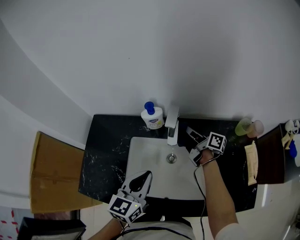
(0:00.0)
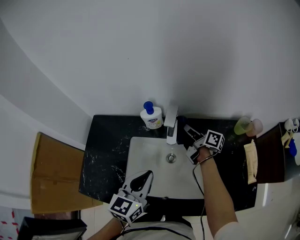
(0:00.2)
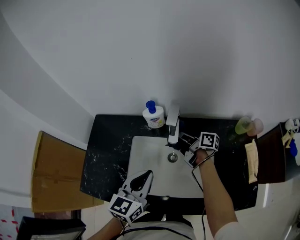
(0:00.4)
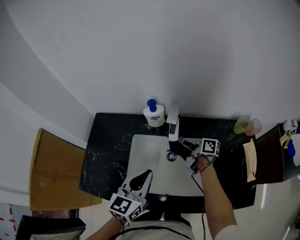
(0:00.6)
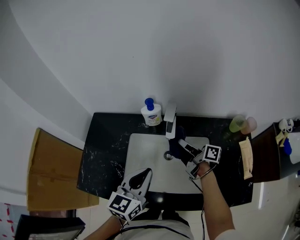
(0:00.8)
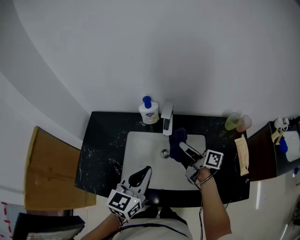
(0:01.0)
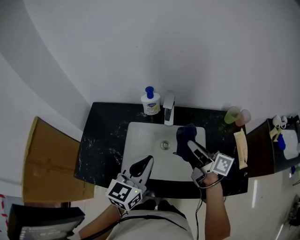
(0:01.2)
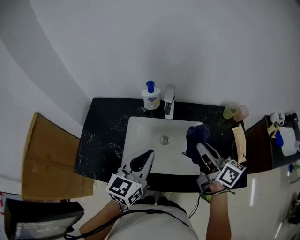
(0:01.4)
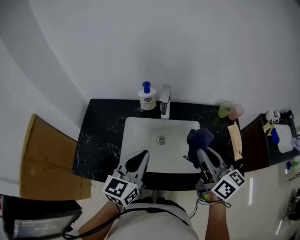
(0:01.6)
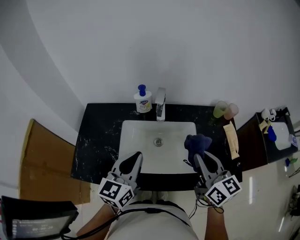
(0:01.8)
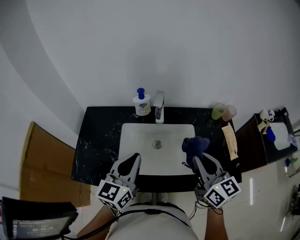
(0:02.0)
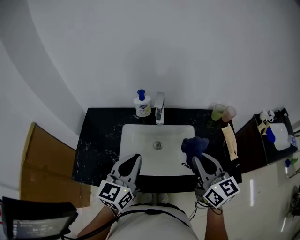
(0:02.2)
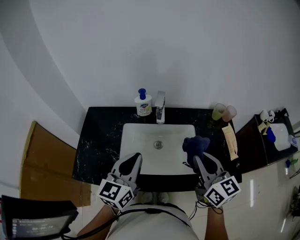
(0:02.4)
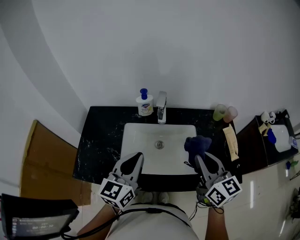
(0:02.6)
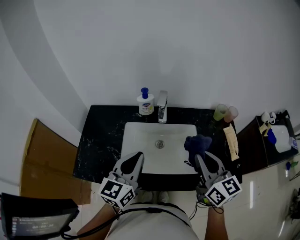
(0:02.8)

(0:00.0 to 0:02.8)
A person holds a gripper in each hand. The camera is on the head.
0:00.0 - 0:01.4: The left gripper heads backward and upward, covering some 10 cm. The right gripper travels backward and upward by roughly 30 cm, and rotates some 30 degrees.
0:01.4 - 0:02.8: The right gripper travels backward and upward by approximately 10 cm, and swivels roughly 30 degrees.

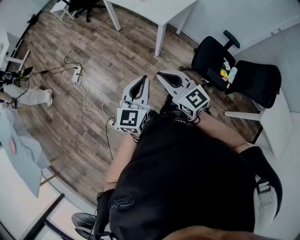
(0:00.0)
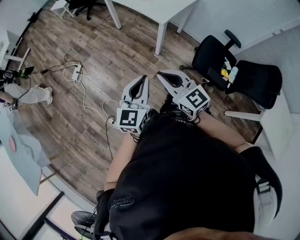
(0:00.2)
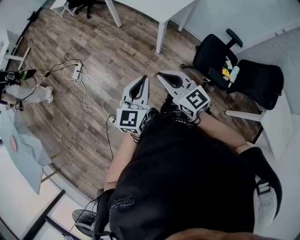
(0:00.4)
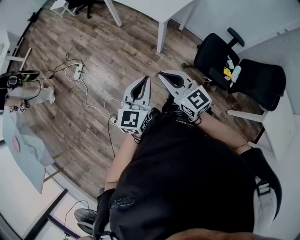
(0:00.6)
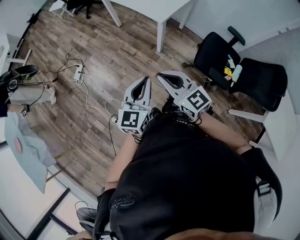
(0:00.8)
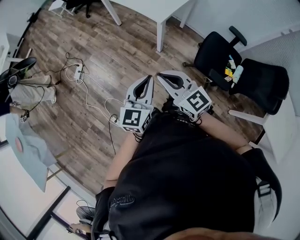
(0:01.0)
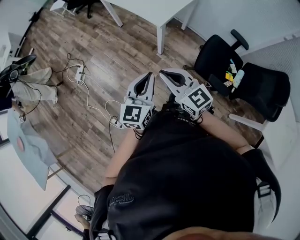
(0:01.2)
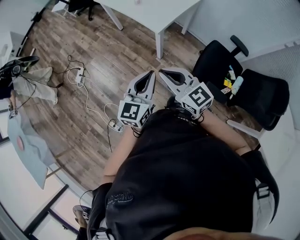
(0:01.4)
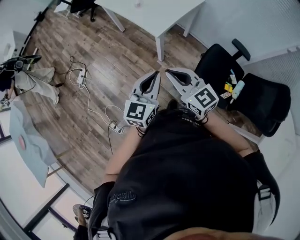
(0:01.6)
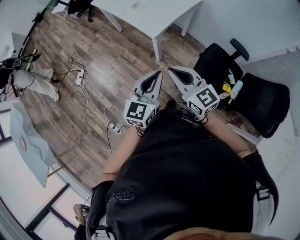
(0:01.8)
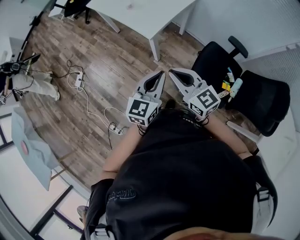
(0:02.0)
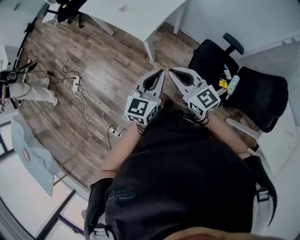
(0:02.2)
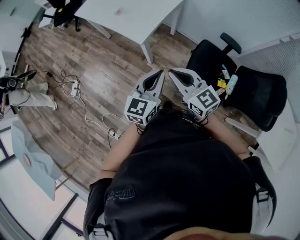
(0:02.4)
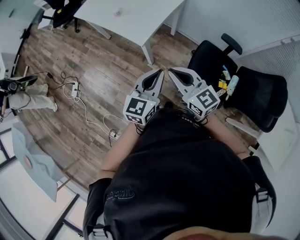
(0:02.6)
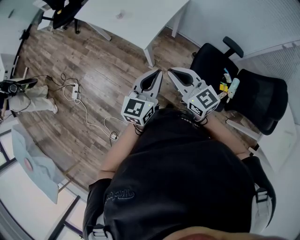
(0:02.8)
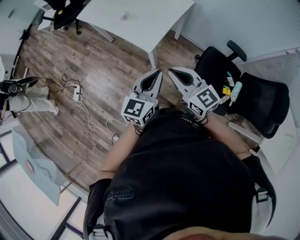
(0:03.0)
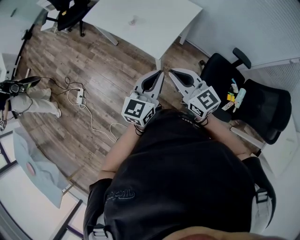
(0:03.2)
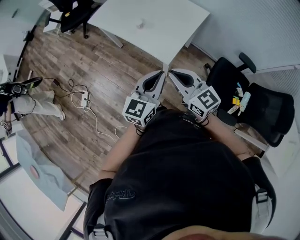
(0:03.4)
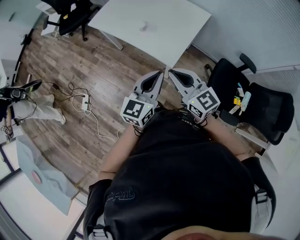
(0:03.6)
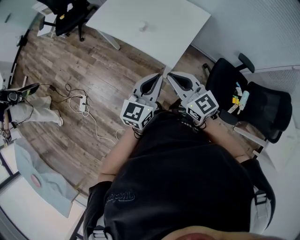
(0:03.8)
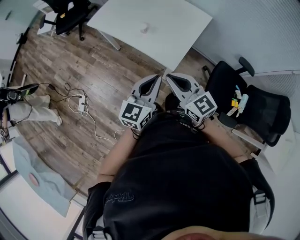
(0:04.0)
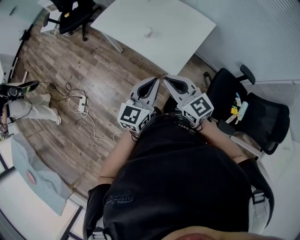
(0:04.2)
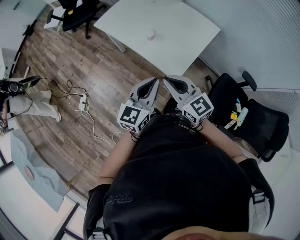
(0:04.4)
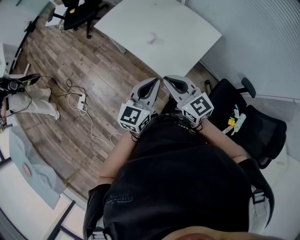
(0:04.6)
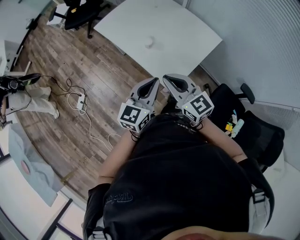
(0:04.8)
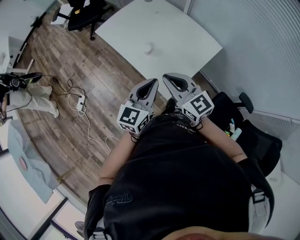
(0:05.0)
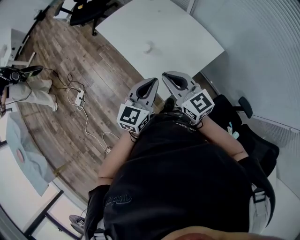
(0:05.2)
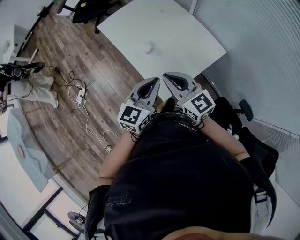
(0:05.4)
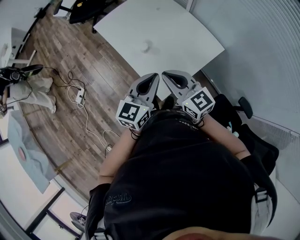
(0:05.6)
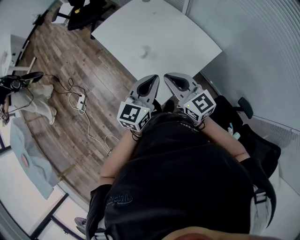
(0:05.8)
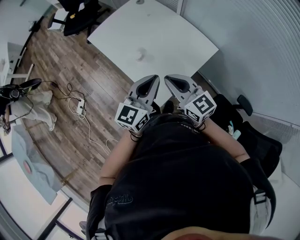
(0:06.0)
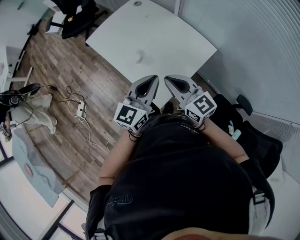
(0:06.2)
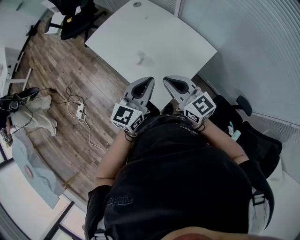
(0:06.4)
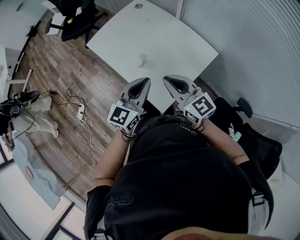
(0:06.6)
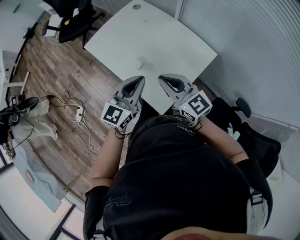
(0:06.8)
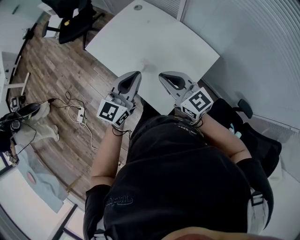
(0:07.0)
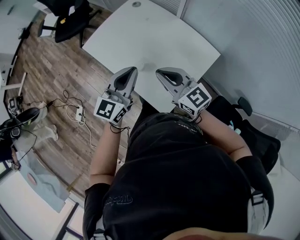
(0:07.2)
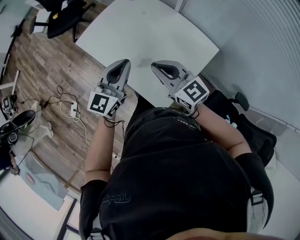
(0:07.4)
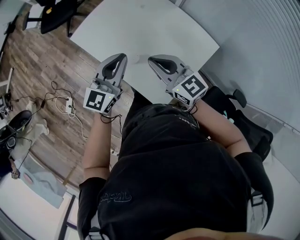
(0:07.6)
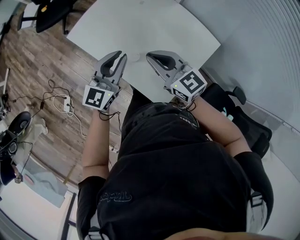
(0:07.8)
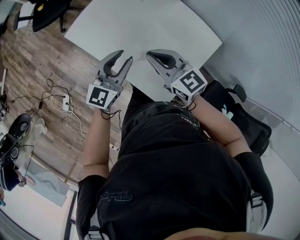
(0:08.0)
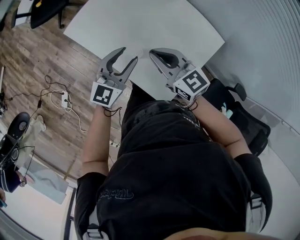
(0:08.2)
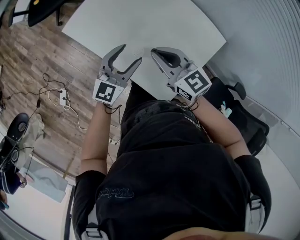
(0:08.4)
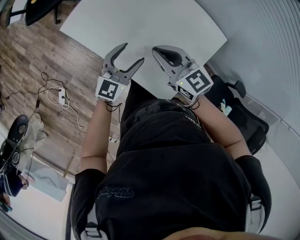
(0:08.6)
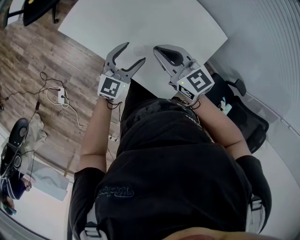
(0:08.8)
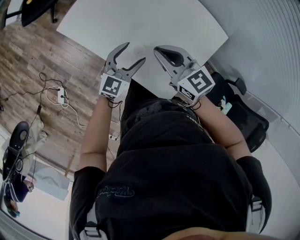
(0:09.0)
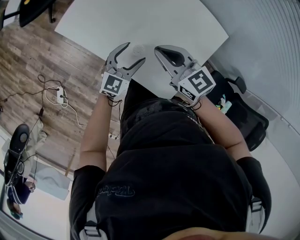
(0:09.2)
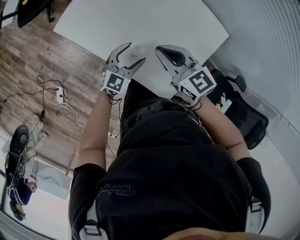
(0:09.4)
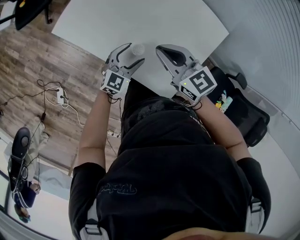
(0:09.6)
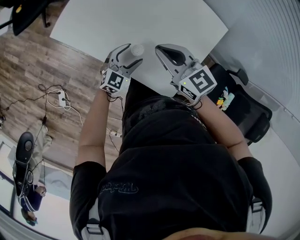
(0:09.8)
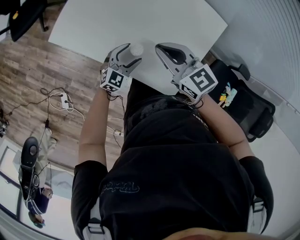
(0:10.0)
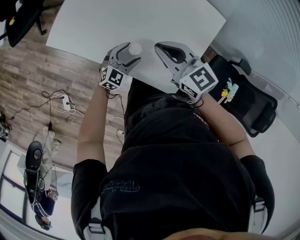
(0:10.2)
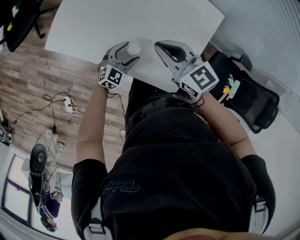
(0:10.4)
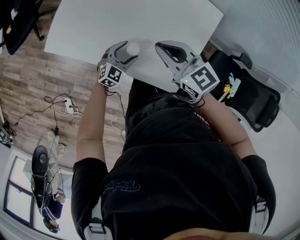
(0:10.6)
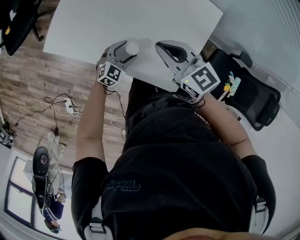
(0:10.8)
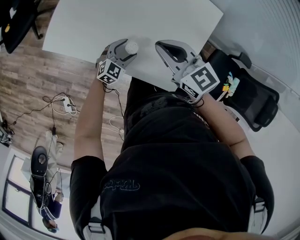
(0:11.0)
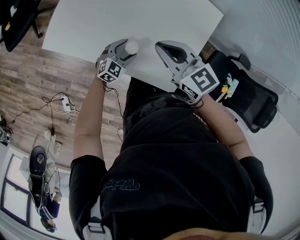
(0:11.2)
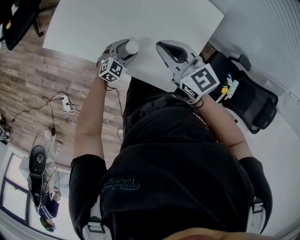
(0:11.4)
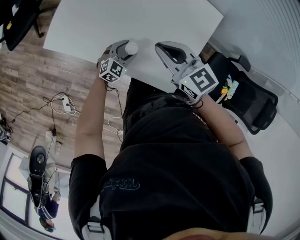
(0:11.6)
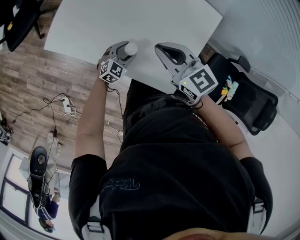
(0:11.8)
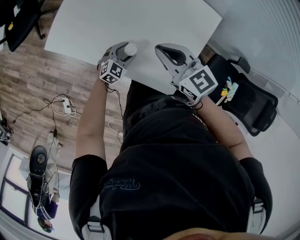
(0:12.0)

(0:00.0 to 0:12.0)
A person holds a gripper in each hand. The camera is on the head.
0:00.0 - 0:01.6: Both grippers move to the right and forward, roughly 25 cm.
0:01.6 - 0:03.0: Both grippers travel together forward, roughly 15 cm.
0:03.0 - 0:04.4: The grippers both shift to the left and forward by some 20 cm.
0:04.4 - 0:06.0: The right gripper heads to the right and forward, covering roughly 20 cm. Meanwhile the left gripper heads forward and to the right, covering approximately 20 cm.
0:06.0 - 0:07.6: Both grippers travel together forward and to the left, roughly 20 cm.
0:07.6 - 0:09.0: The right gripper travels downward and forward by roughly 10 cm. Meanwhile the left gripper moves downward, approximately 15 cm, and opens.
0:09.0 - 0:10.4: The left gripper shifts about 15 cm downward, and changes its angle by roughly 30 degrees.
0:10.4 - 0:12.0: The grippers move only a little.

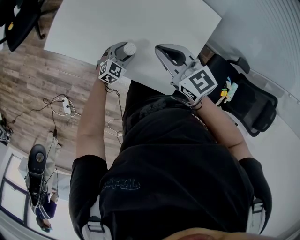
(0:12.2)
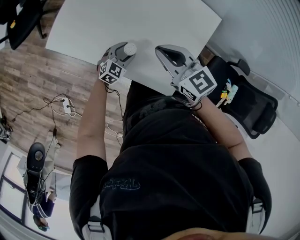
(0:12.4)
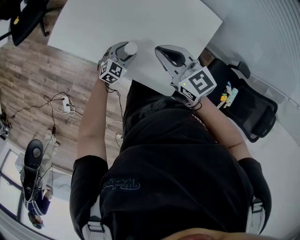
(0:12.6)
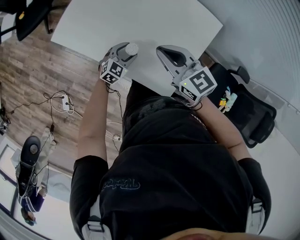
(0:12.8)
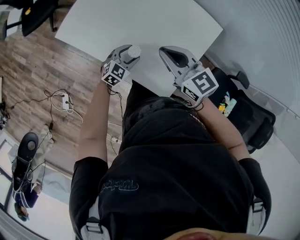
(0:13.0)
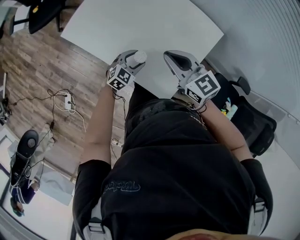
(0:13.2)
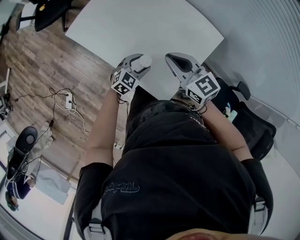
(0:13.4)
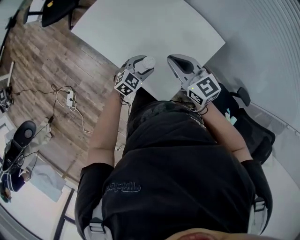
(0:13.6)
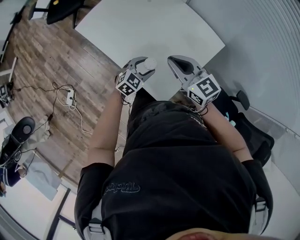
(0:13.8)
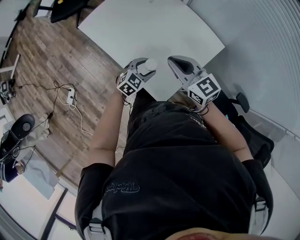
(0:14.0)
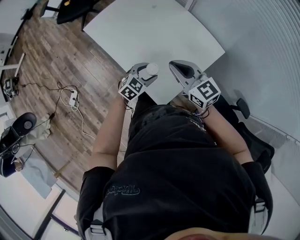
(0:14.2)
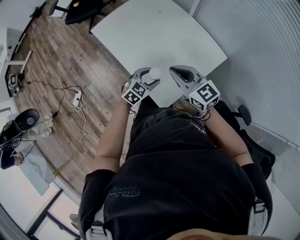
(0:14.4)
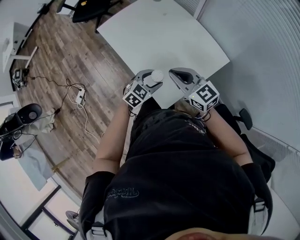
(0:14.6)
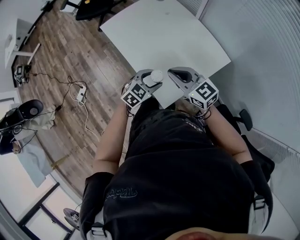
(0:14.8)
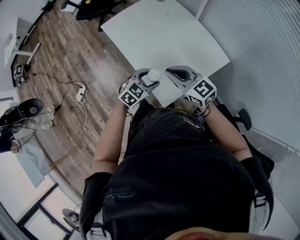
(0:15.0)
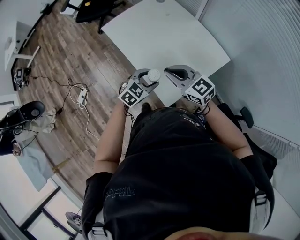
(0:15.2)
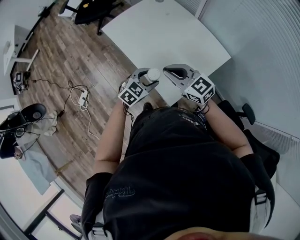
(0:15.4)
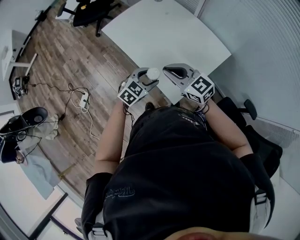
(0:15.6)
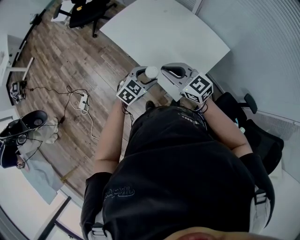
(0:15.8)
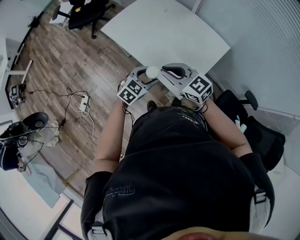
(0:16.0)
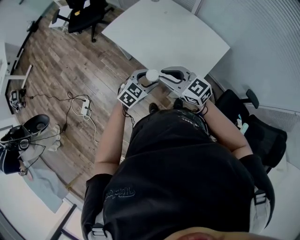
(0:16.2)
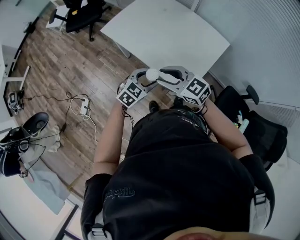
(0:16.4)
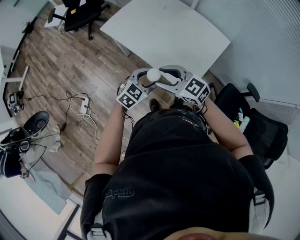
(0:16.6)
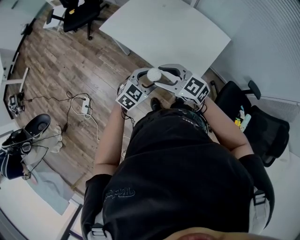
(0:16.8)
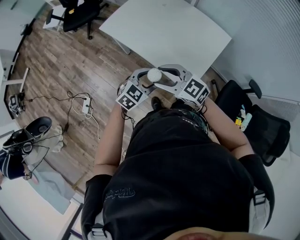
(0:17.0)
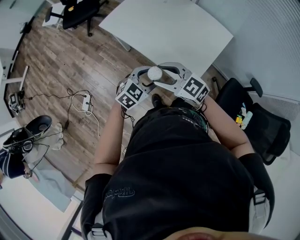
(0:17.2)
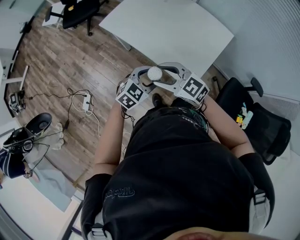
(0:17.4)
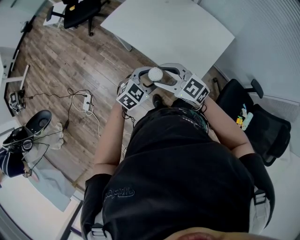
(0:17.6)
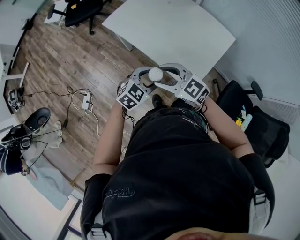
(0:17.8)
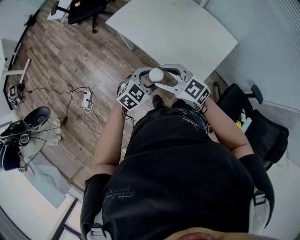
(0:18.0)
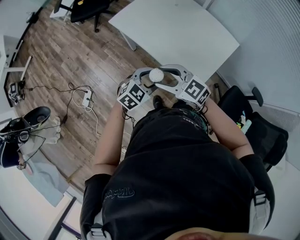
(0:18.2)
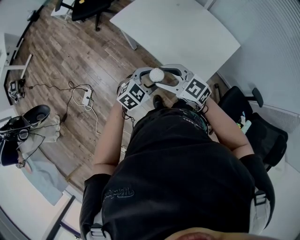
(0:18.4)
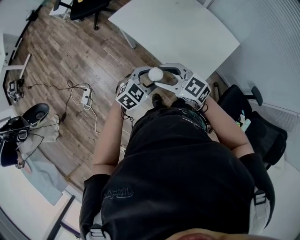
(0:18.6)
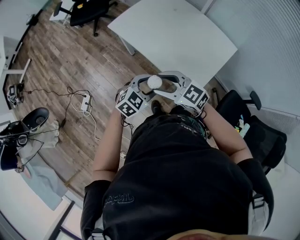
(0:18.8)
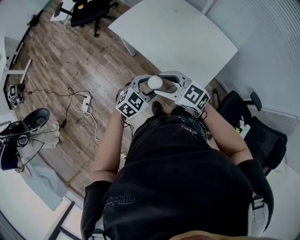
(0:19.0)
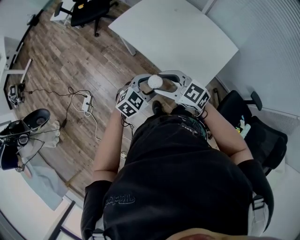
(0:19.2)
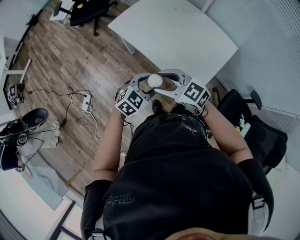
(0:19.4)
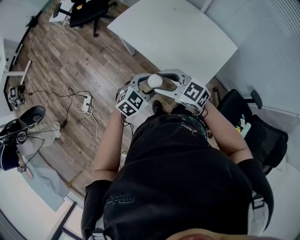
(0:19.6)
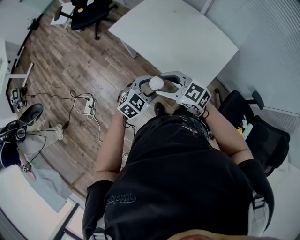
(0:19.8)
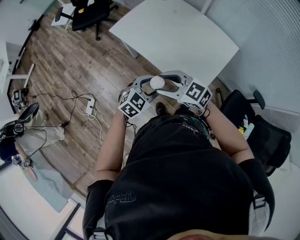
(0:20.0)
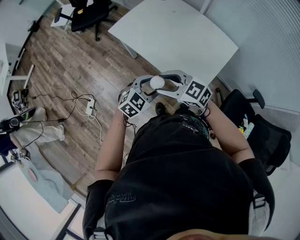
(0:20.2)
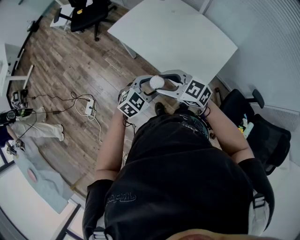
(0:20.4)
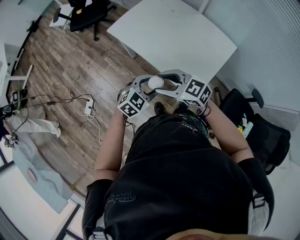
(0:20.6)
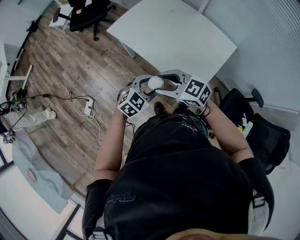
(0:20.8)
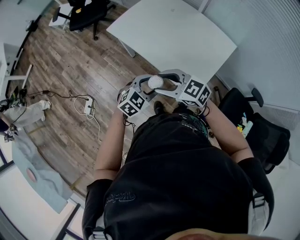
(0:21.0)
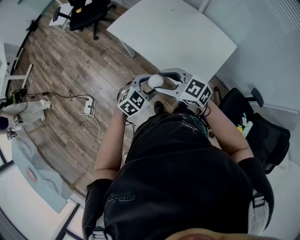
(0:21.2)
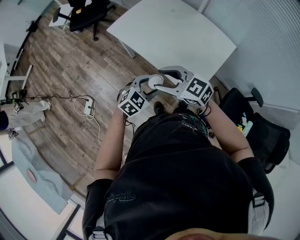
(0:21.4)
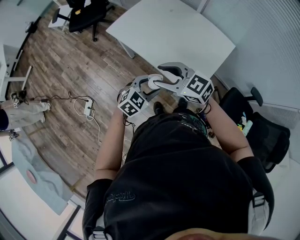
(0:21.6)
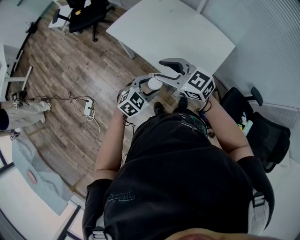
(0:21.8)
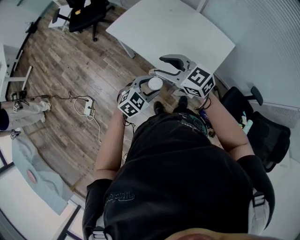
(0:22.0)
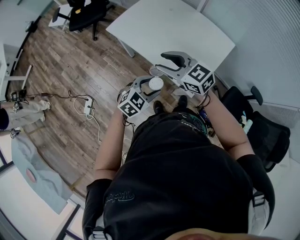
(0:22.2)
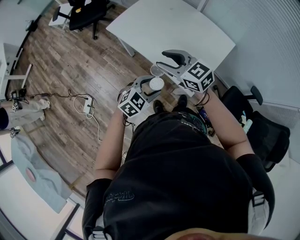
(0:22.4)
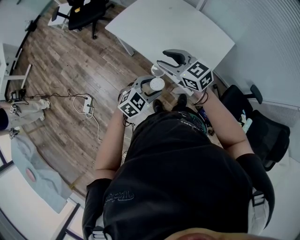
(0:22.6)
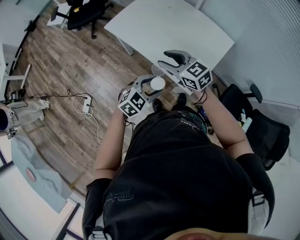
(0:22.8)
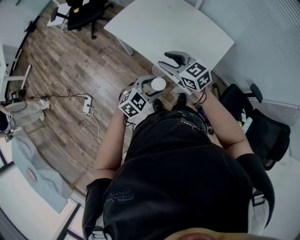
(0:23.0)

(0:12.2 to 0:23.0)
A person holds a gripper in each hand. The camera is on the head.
0:12.2 - 0:13.8: The left gripper is displaced upward, to the right and backward by about 15 cm, while the right gripper shifts roughly 10 cm backward and to the right.
0:13.8 - 0:15.2: The left gripper shifts approximately 10 cm upward and backward. The right gripper moves backward, some 5 cm, and turns by approximately 20 degrees.
0:15.2 - 0:16.8: The left gripper moves to the left, some 10 cm; the right gripper moves to the left and backward, about 15 cm, and opens its fingers.
0:16.8 - 0:18.4: The grippers move only a little.
0:18.4 - 0:20.0: Neither gripper changes place.
0:20.0 - 0:21.4: The grippers move only a little.
0:21.4 - 0:23.0: The right gripper goes about 5 cm forward.
